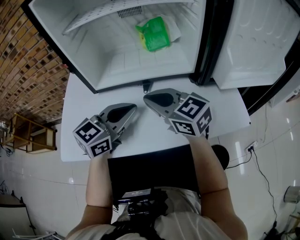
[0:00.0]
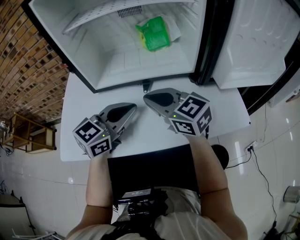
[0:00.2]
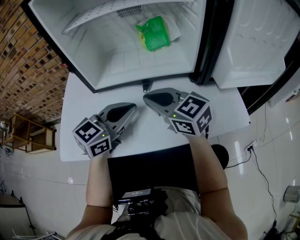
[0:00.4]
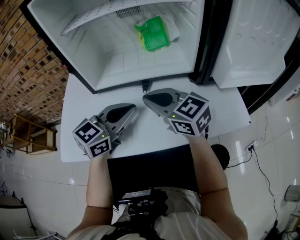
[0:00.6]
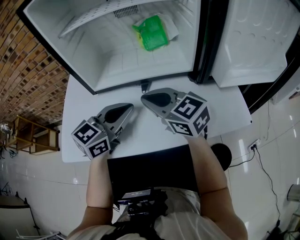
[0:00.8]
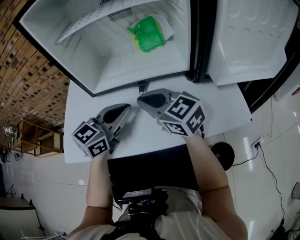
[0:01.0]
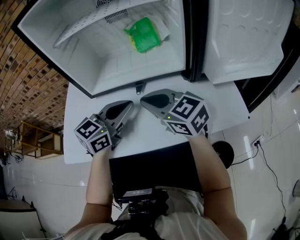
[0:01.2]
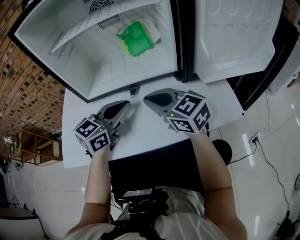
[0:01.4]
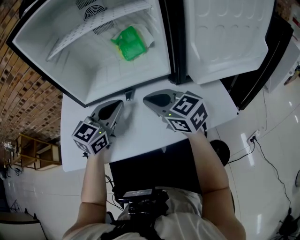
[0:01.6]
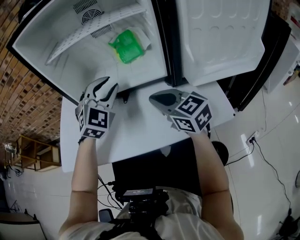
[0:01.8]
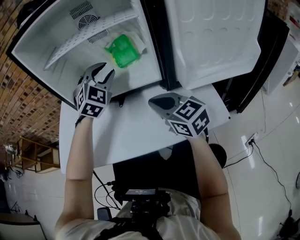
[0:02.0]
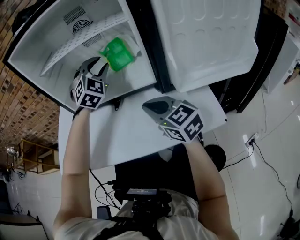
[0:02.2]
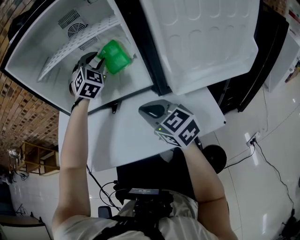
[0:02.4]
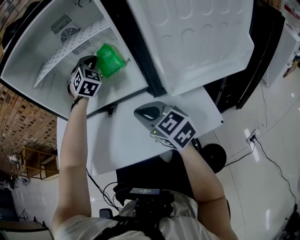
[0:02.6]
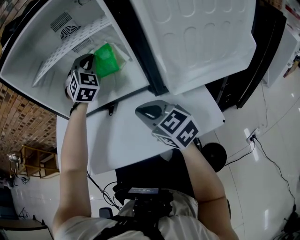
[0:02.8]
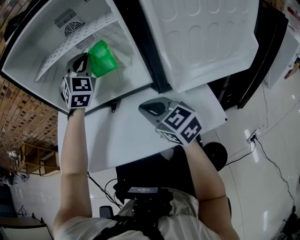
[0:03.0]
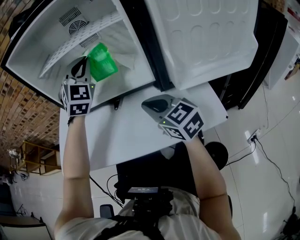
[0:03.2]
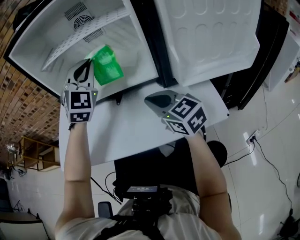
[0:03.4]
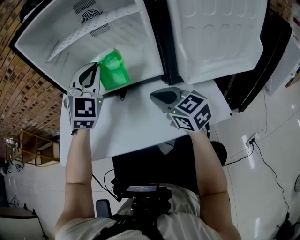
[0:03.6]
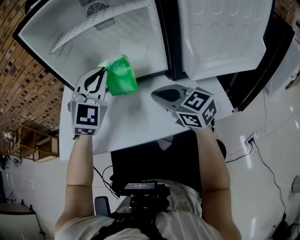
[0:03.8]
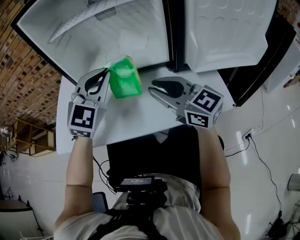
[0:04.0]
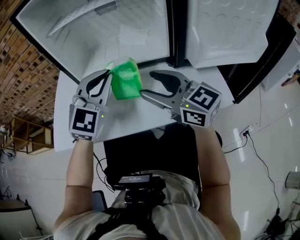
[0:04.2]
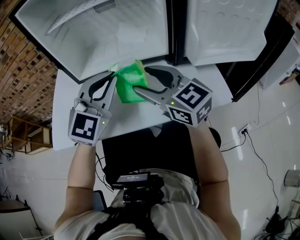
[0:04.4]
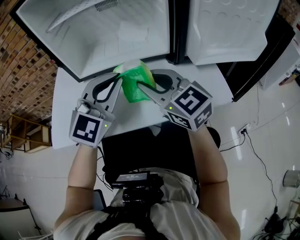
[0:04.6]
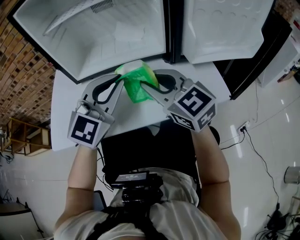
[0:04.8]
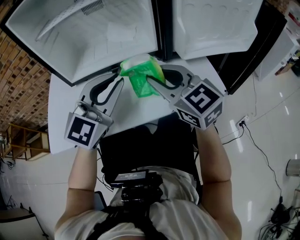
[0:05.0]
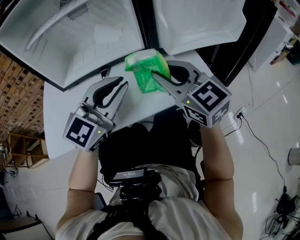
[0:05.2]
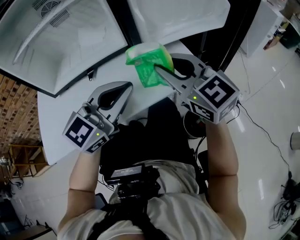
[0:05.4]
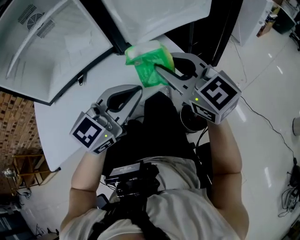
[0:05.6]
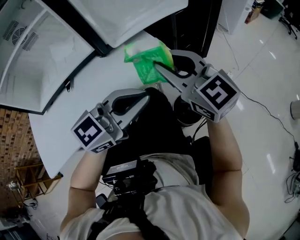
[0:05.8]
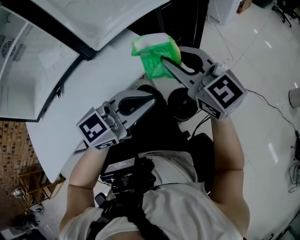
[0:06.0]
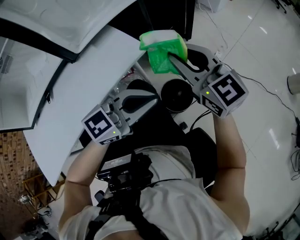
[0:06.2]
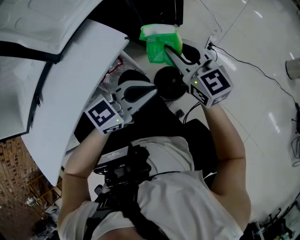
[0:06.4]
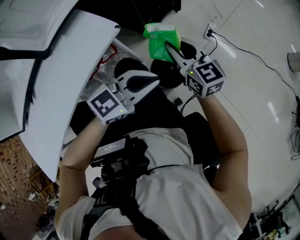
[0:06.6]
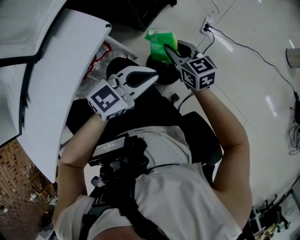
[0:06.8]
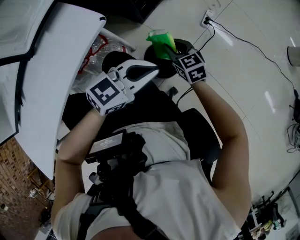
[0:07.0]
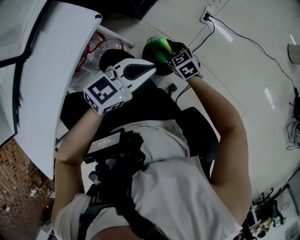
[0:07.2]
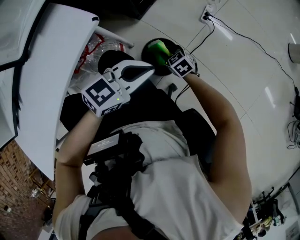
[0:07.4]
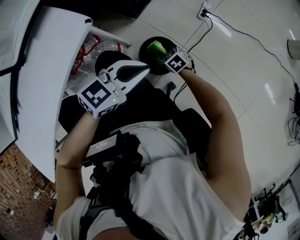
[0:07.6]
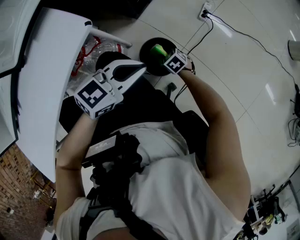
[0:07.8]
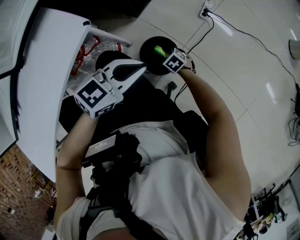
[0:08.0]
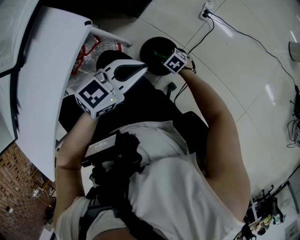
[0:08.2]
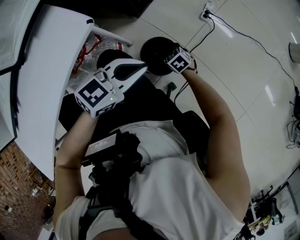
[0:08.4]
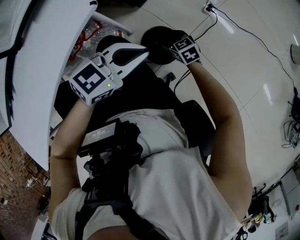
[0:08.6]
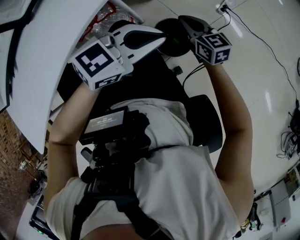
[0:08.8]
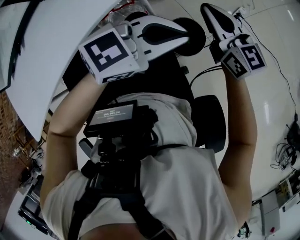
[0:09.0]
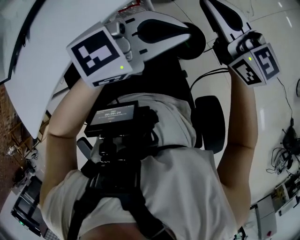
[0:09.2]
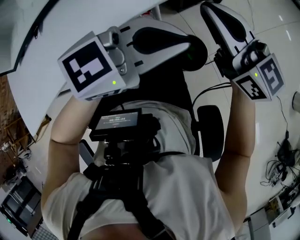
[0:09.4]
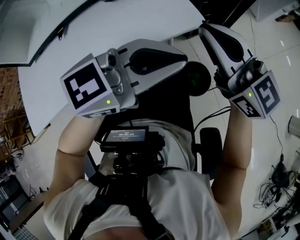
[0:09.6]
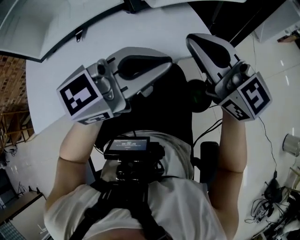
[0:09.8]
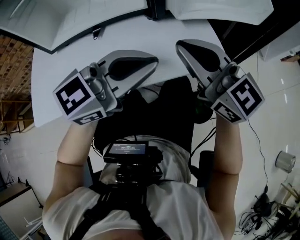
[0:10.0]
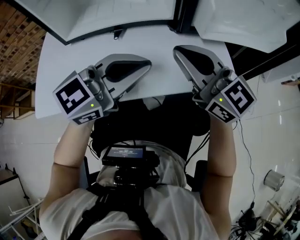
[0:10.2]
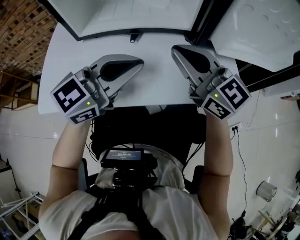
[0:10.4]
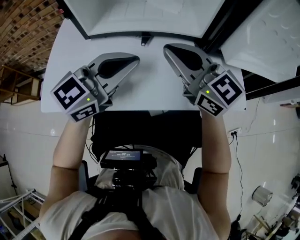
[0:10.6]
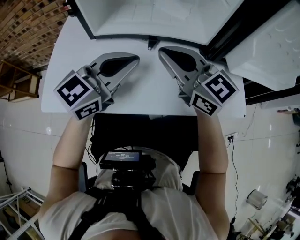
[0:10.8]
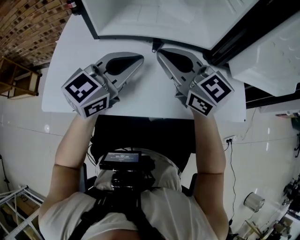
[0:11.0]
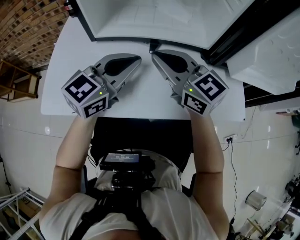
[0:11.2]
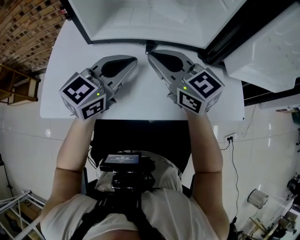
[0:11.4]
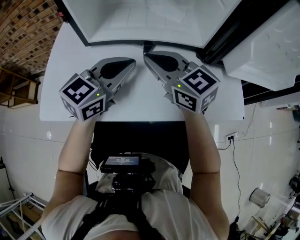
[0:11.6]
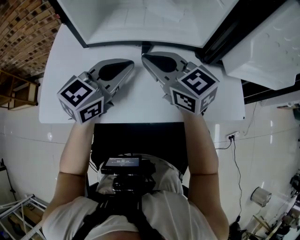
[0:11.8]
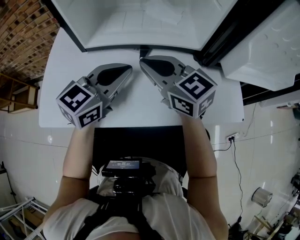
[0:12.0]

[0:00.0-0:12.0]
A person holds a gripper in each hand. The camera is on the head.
0:00.0 to 0:01.6: The right gripper is displaced to the right by approximately 5 cm.
0:01.6 to 0:03.0: The right gripper moves to the right, approximately 5 cm. Meanwhile the left gripper goes about 25 cm forward, upward and to the right, turns by about 60 degrees, and opens and closes again.
0:03.0 to 0:04.4: The right gripper is displaced to the left and upward by approximately 10 cm, and opens. Meanwhile the left gripper travels backward by some 20 cm, and rotates about 30 degrees.
0:04.4 to 0:06.0: The left gripper shifts by some 35 cm, and swivels approximately 70 degrees; the right gripper moves approximately 35 cm, rotates approximately 40 degrees, and closes.
0:06.0 to 0:07.6: The left gripper heads downward and to the right, covering approximately 25 cm, and changes its angle by some 30 degrees. Meanwhile the right gripper shifts roughly 50 cm downward, and tilts its fingers roughly 50 degrees downward.
0:07.6 to 0:09.0: The right gripper moves upward, roughly 35 cm, tilts its fingers approximately 50 degrees upward, and opens, then closes once more. The left gripper shifts approximately 10 cm upward.
0:09.0 to 0:10.4: Both grippers are carried some 40 cm. The right gripper changes its angle by about 50 degrees. Meanwhile the left gripper changes its angle by approximately 50 degrees.
0:10.4 to 0:12.0: The right gripper travels to the left and forward by some 10 cm; the left gripper travels forward and to the left by approximately 10 cm.

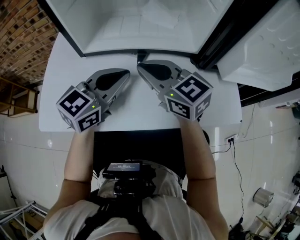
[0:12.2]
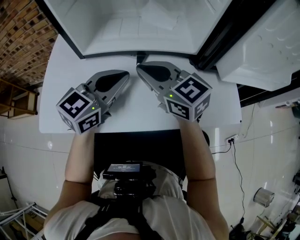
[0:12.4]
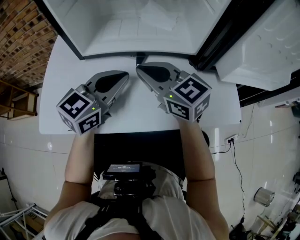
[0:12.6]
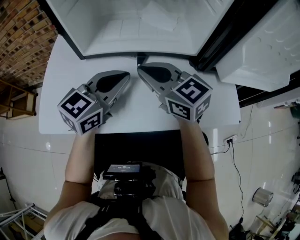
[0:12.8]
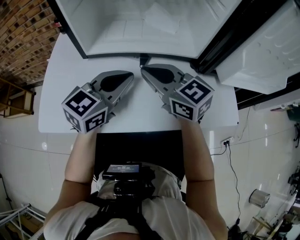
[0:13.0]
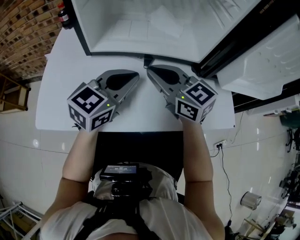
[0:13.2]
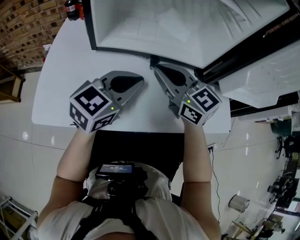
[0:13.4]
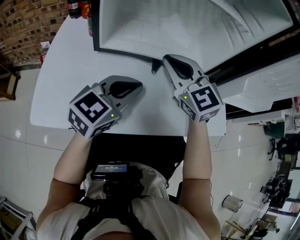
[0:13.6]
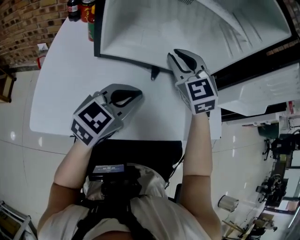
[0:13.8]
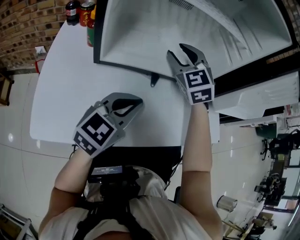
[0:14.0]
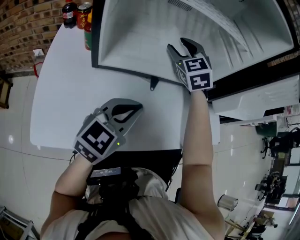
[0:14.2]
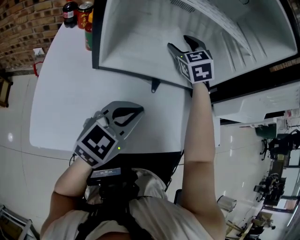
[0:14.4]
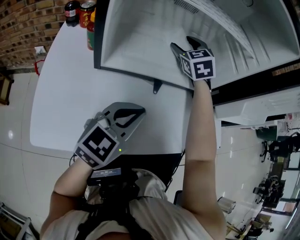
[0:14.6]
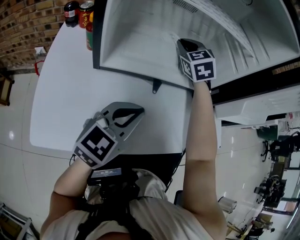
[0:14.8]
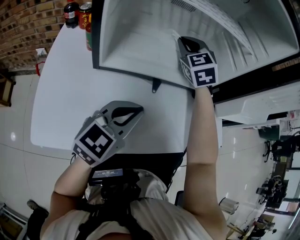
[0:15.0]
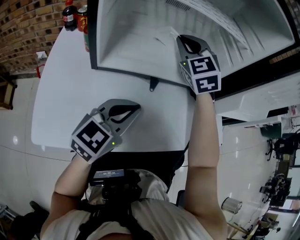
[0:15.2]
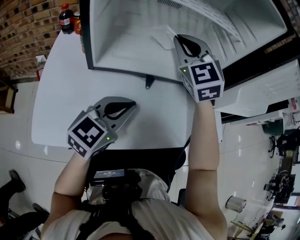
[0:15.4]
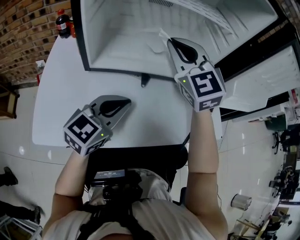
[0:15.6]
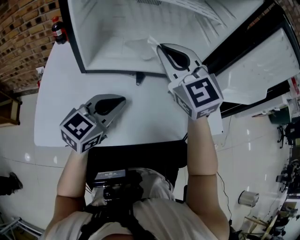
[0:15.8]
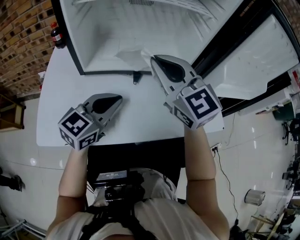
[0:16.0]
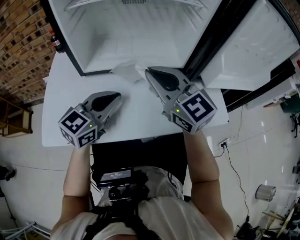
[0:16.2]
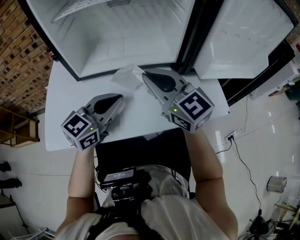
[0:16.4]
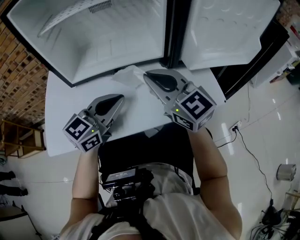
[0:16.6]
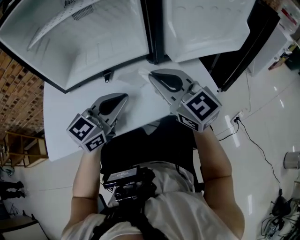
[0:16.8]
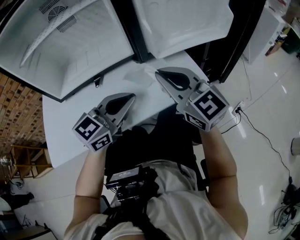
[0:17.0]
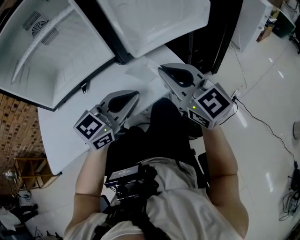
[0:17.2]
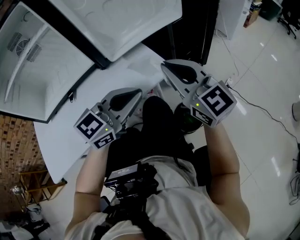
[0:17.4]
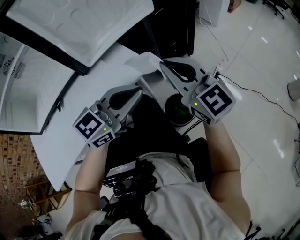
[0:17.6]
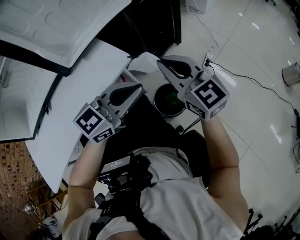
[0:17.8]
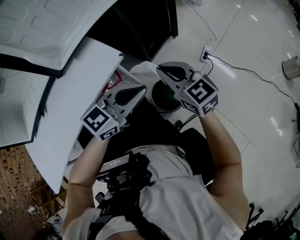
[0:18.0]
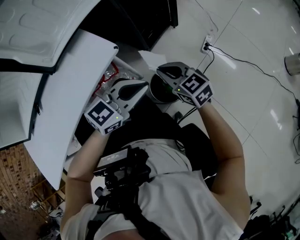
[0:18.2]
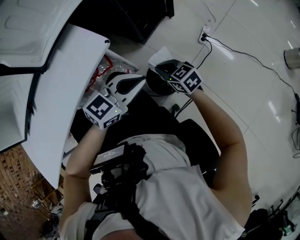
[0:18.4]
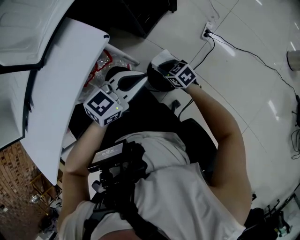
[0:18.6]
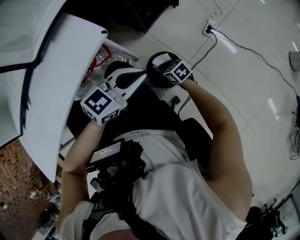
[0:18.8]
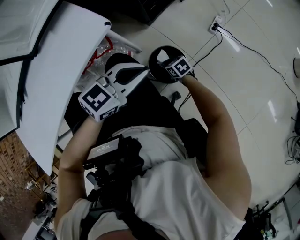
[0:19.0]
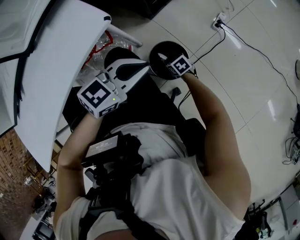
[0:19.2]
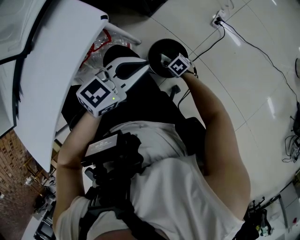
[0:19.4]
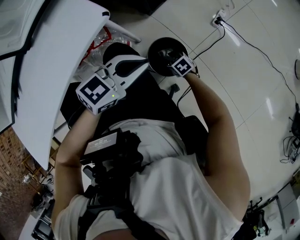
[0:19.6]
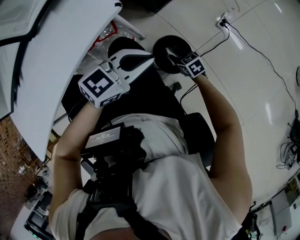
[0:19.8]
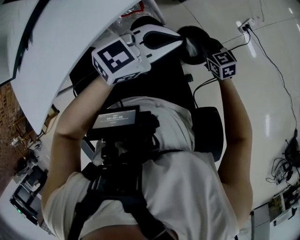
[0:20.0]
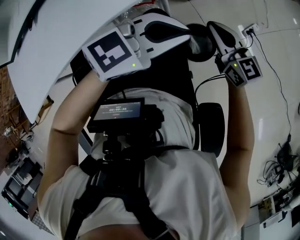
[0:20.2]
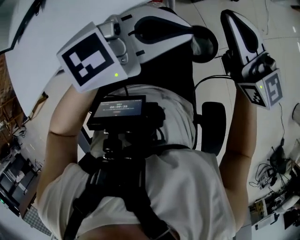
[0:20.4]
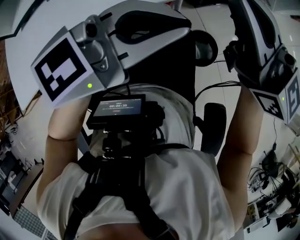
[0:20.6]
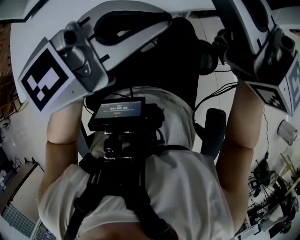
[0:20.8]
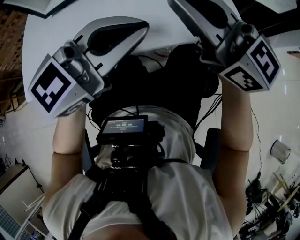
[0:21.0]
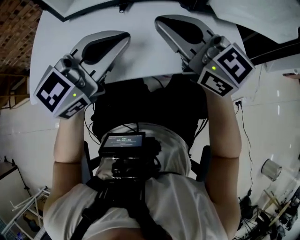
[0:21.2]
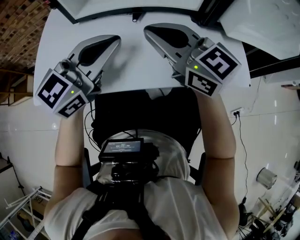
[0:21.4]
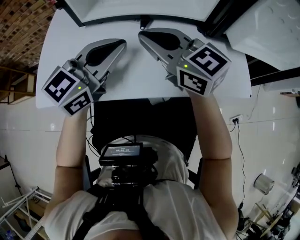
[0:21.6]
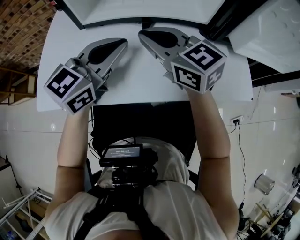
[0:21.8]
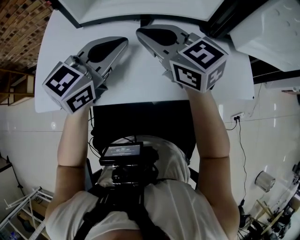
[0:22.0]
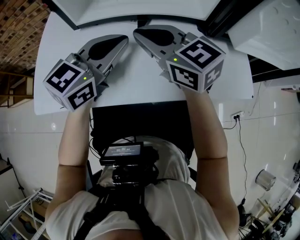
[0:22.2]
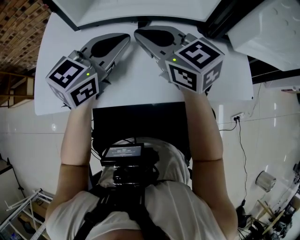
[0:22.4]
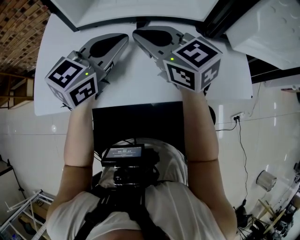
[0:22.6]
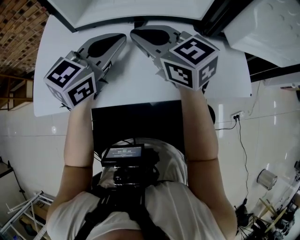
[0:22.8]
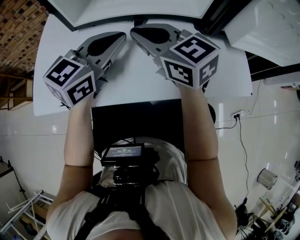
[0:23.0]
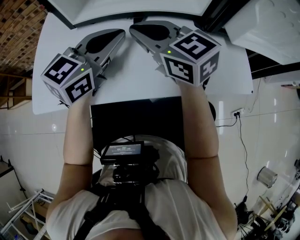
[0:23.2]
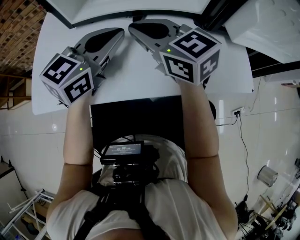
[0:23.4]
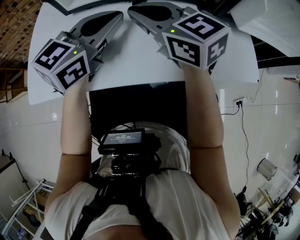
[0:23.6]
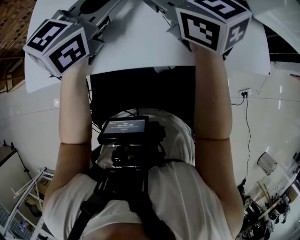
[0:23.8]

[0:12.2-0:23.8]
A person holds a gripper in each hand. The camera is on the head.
0:12.2 to 0:13.6: The right gripper changes place by approximately 5 cm, and swivels approximately 30 degrees.
0:13.6 to 0:15.0: The right gripper heads forward, covering roughly 15 cm, rotates approximately 30 degrees, and opens and closes again.
0:15.0 to 0:16.6: The left gripper moves to the right, about 5 cm. The right gripper shifts some 25 cm backward and to the right, and rotates roughly 40 degrees.
0:16.6 to 0:18.0: The right gripper ends up approximately 40 cm from where it was, and turns by some 40 degrees. The left gripper ends up some 40 cm from where it was, and changes its angle by about 50 degrees.
0:18.0 to 0:19.4: The right gripper moves downward, approximately 50 cm, tips its fingers downward by about 50 degrees, and opens. The left gripper heads downward, covering approximately 10 cm.
0:19.4 to 0:21.0: The right gripper moves upward, about 60 cm, points its fingers some 70 degrees further upward, and closes up. Meanwhile the left gripper shifts by some 40 cm, and rotates roughly 40 degrees.
0:21.0 to 0:22.4: The right gripper heads to the left, forward and downward, covering about 20 cm. Meanwhile the left gripper shifts some 20 cm forward and to the left, and swivels some 30 degrees.
0:22.4 to 0:23.8: Both grippers stay about where they are.
